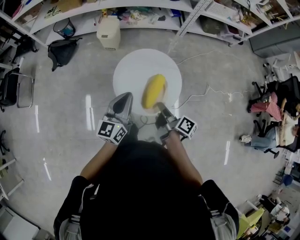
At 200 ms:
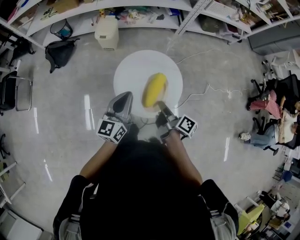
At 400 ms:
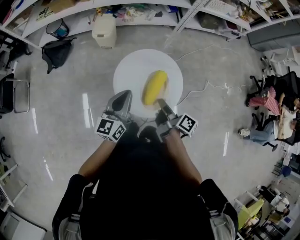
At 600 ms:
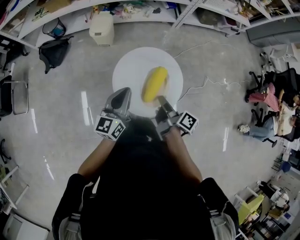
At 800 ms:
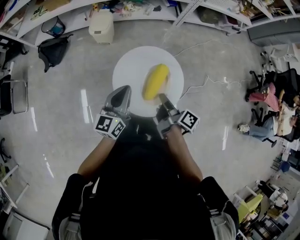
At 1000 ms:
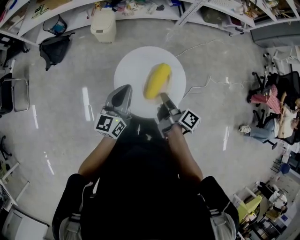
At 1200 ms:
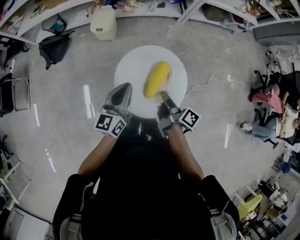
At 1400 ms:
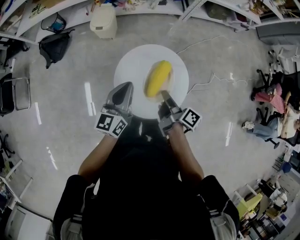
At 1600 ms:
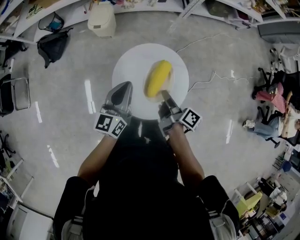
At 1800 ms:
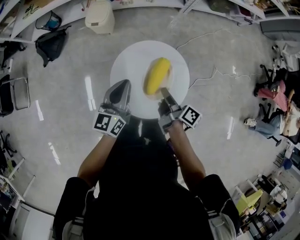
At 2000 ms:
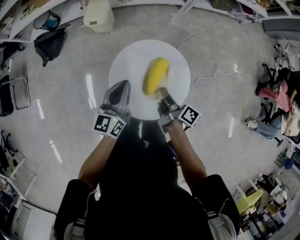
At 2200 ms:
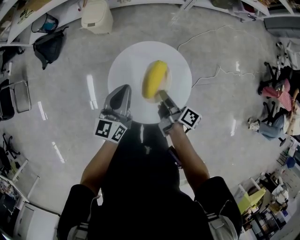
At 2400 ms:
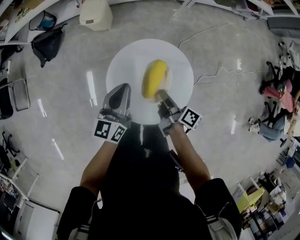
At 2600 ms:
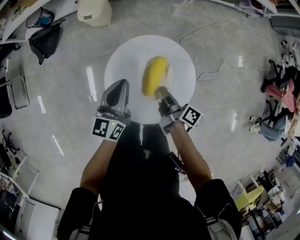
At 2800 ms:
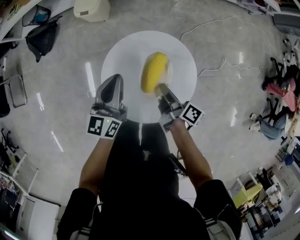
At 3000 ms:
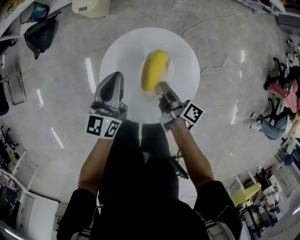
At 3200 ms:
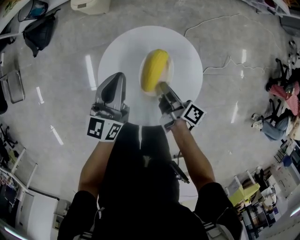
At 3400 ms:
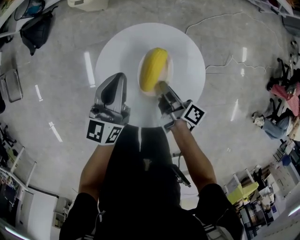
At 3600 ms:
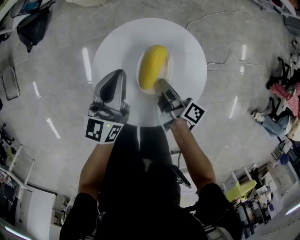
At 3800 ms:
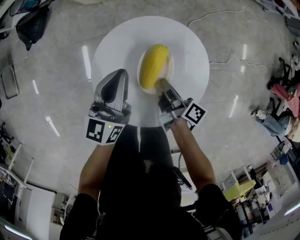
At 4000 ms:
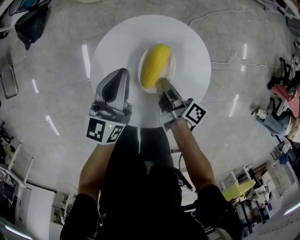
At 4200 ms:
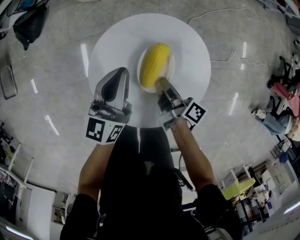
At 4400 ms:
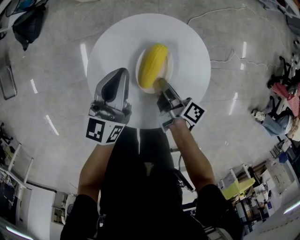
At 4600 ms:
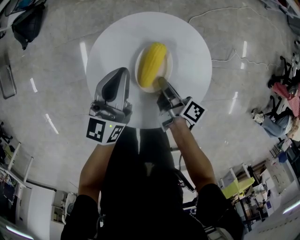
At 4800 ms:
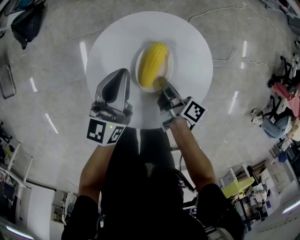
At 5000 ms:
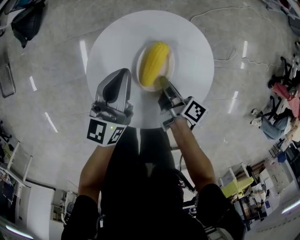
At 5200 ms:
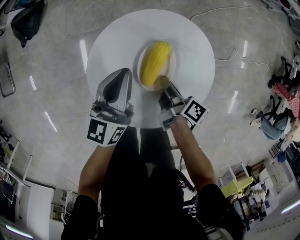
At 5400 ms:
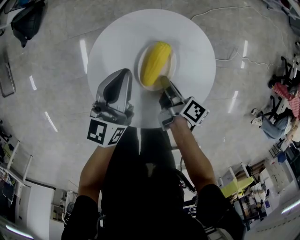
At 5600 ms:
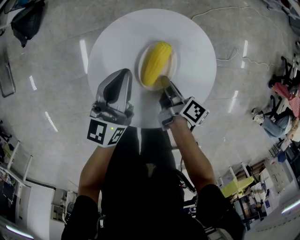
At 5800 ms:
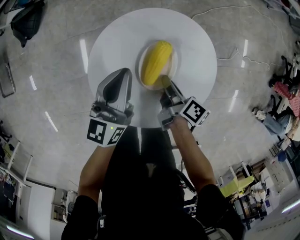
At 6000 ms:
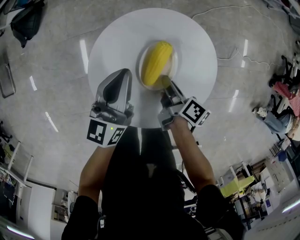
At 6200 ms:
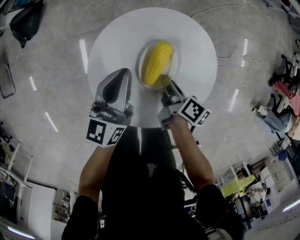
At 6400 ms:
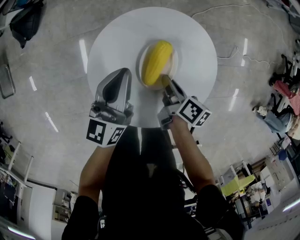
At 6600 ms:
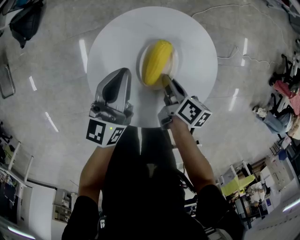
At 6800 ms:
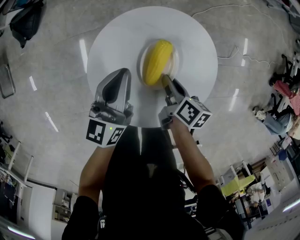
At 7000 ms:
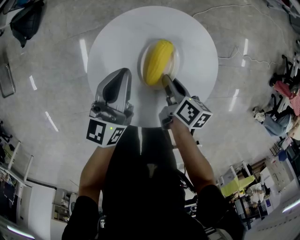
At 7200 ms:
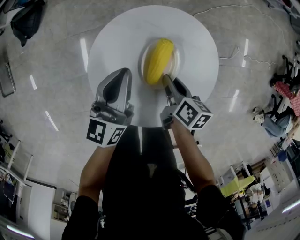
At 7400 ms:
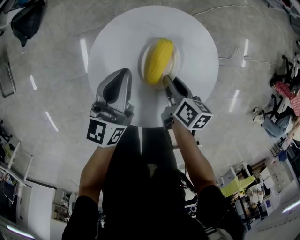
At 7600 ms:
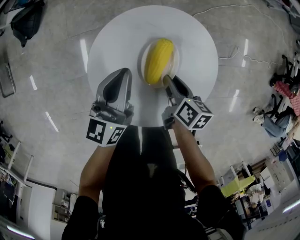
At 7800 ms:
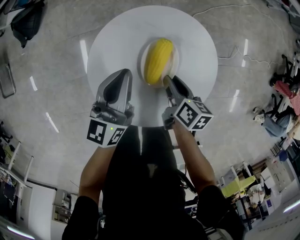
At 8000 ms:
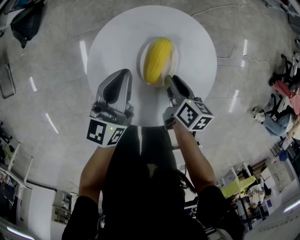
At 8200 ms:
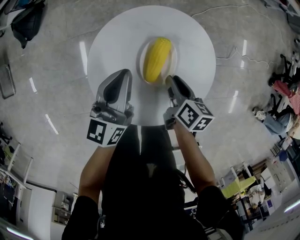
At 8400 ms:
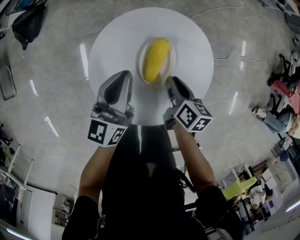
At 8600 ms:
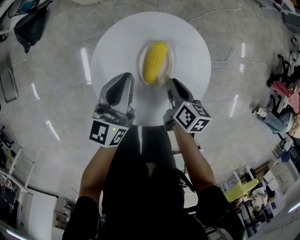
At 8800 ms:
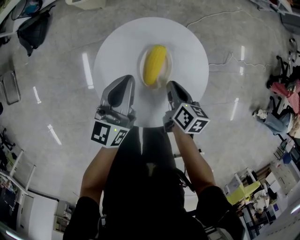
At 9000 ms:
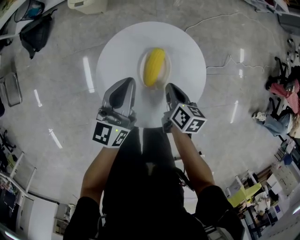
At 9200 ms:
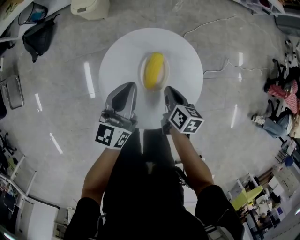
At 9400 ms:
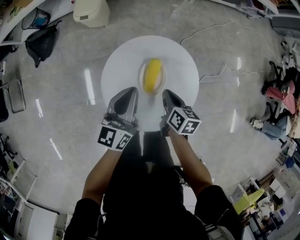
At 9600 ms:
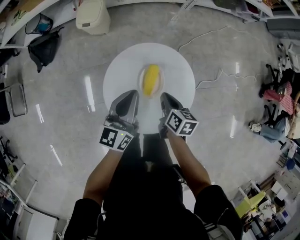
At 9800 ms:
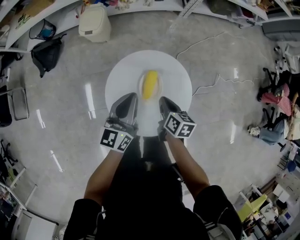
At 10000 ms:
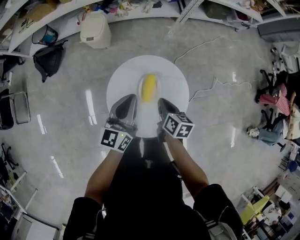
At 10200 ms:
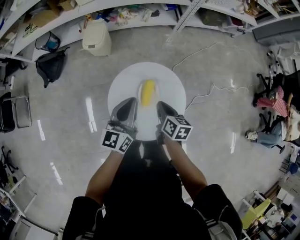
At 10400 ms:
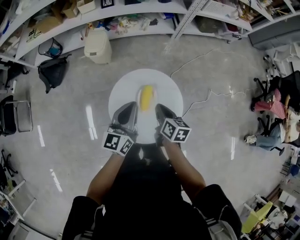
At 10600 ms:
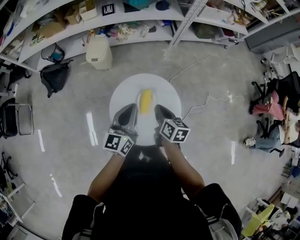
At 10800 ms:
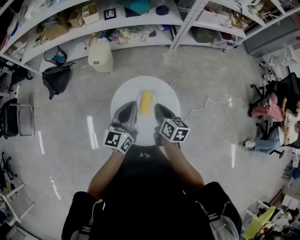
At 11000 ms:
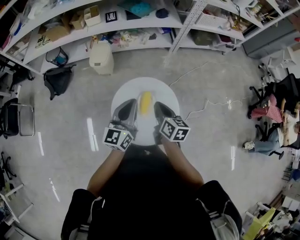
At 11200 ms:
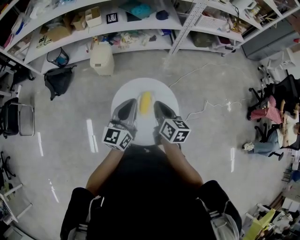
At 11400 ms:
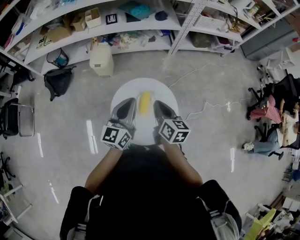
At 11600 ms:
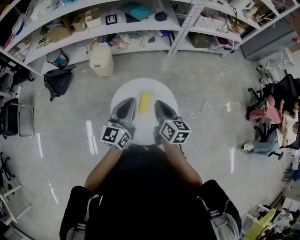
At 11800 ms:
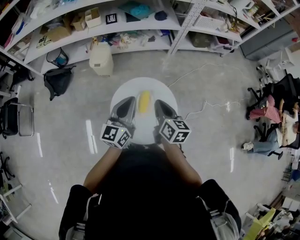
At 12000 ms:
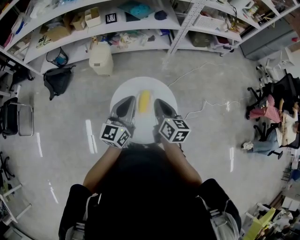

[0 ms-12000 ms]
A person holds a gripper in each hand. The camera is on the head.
0 ms to 1600 ms: The left gripper shifts by roughly 15 cm.
1600 ms to 3000 ms: The left gripper heads downward, covering about 10 cm.
3000 ms to 4400 ms: The left gripper heads downward, covering approximately 10 cm.
7600 ms to 9000 ms: The left gripper travels upward by some 5 cm.
9000 ms to 10400 ms: The left gripper shifts some 15 cm upward.
10400 ms to 12000 ms: The left gripper heads upward, covering roughly 10 cm.

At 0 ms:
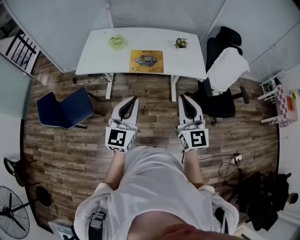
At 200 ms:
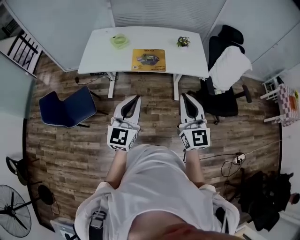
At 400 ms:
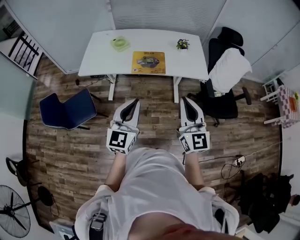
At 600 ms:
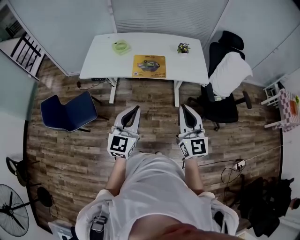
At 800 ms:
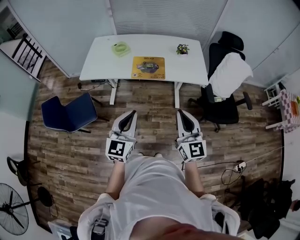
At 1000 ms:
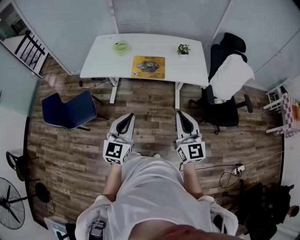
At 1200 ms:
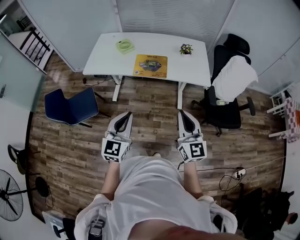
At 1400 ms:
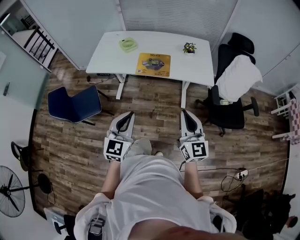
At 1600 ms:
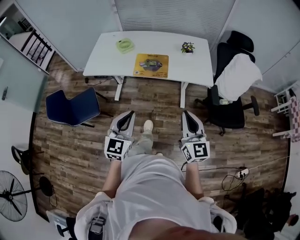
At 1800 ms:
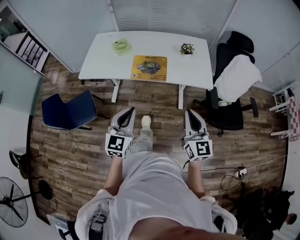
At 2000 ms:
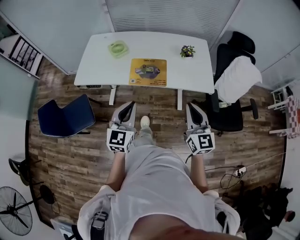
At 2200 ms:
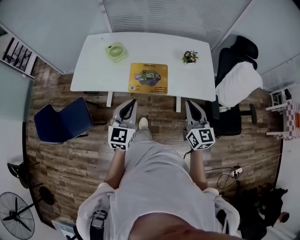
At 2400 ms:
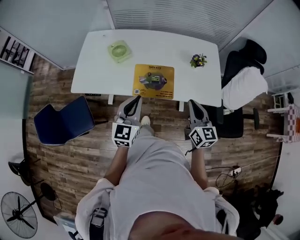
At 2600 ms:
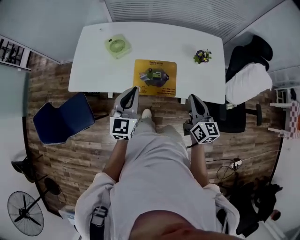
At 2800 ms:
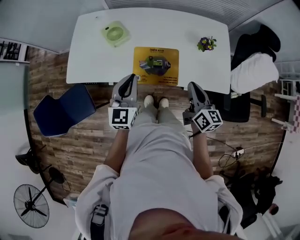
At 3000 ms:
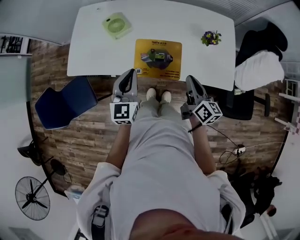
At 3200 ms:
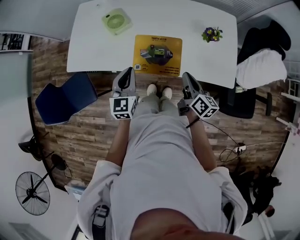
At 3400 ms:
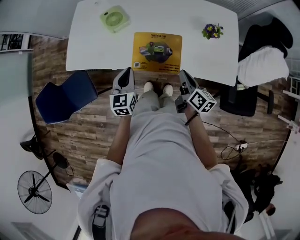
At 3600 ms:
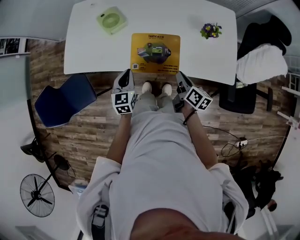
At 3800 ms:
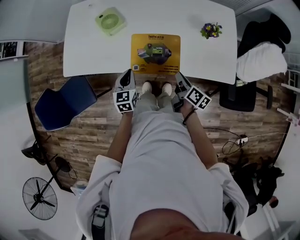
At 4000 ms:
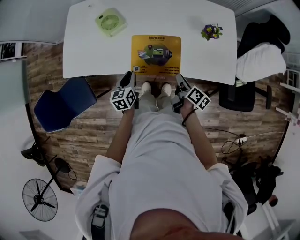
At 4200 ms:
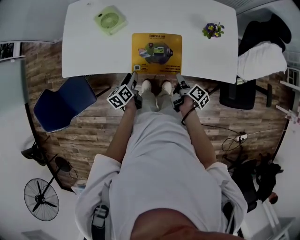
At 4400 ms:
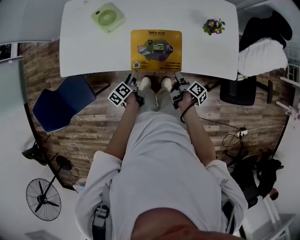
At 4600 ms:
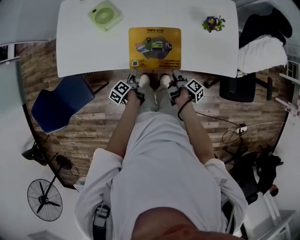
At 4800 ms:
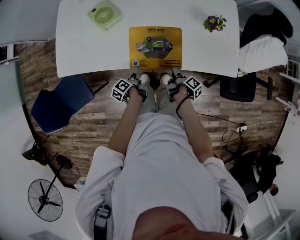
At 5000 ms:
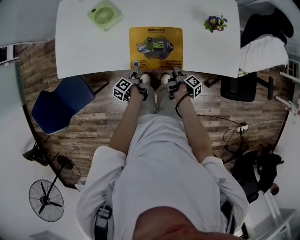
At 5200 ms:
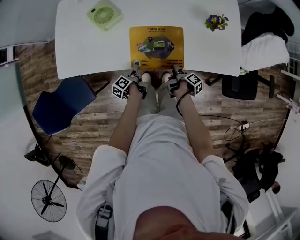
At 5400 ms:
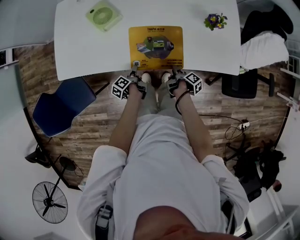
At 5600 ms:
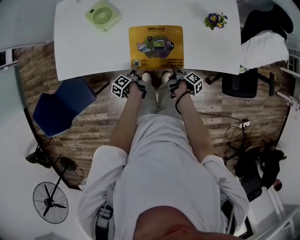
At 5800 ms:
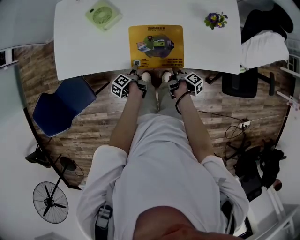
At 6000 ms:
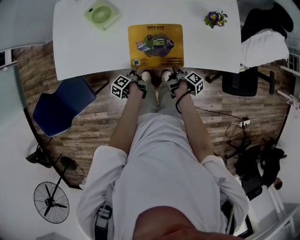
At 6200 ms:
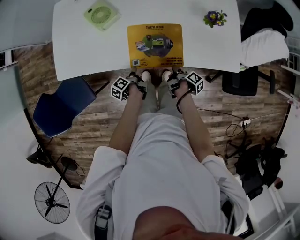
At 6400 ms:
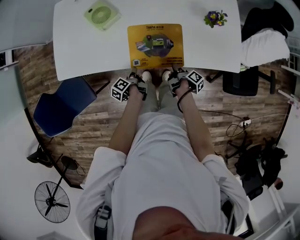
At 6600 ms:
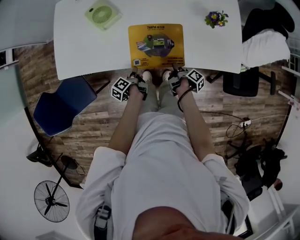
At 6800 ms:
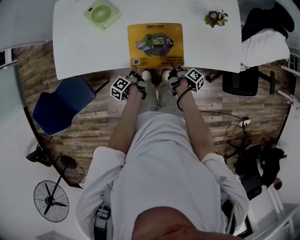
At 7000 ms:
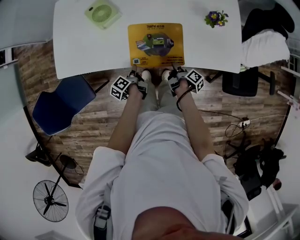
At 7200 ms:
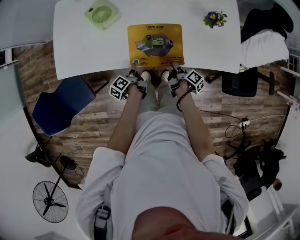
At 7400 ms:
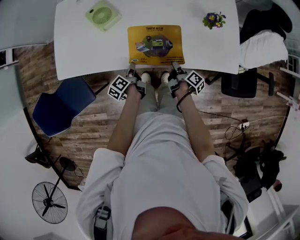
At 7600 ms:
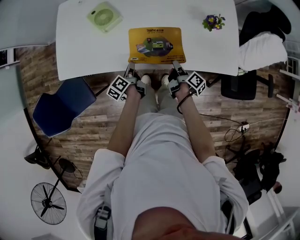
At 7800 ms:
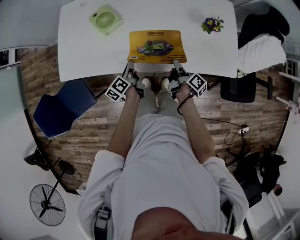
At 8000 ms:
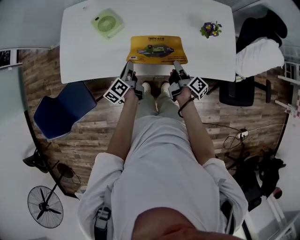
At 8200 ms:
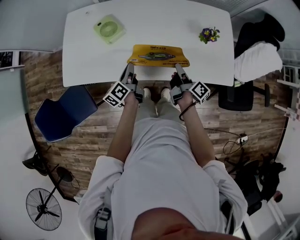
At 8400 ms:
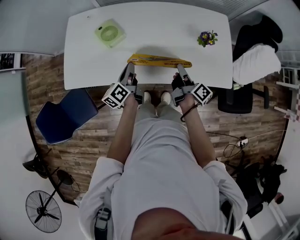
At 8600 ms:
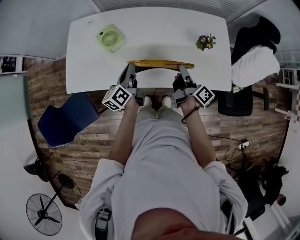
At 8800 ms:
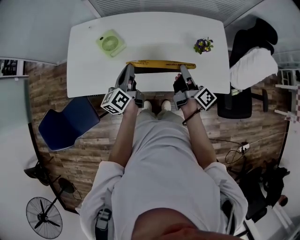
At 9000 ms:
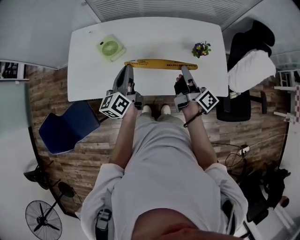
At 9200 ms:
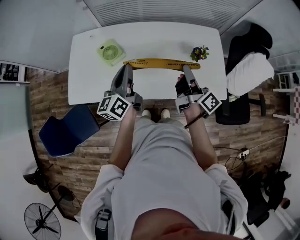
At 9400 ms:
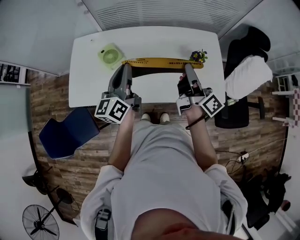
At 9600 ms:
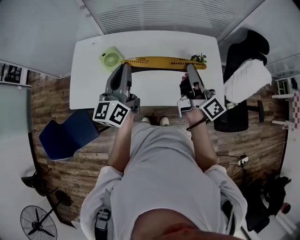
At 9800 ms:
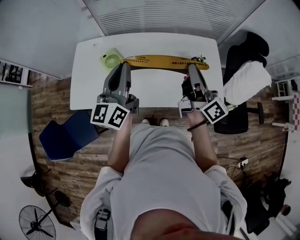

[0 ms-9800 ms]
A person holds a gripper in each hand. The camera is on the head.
0 ms to 1400 ms: The left gripper travels downward by about 5 cm; the right gripper travels to the right and downward by some 10 cm.
1400 ms to 2800 ms: Both grippers are carried forward, roughly 40 cm. The right gripper changes its angle by some 30 degrees.
2800 ms to 4200 ms: The grippers both shift downward by roughly 25 cm. The right gripper rotates around the line of its fingers by some 50 degrees, clockwise from behind, and opens; the left gripper rolls counterclockwise, seen from behind, by about 50 degrees, and opens.
4200 ms to 5600 ms: The grippers both shift downward by some 10 cm. The left gripper rotates around the line of its fingers by about 40 degrees, counterclockwise from behind. Meanwhile the right gripper rotates about 30 degrees.
5600 ms to 7000 ms: The left gripper closes up.
7000 ms to 8400 ms: The left gripper travels upward and forward by roughly 20 cm, and swivels some 40 degrees, while the right gripper is displaced upward by about 20 cm, and changes its angle by about 30 degrees.
8400 ms to 9800 ms: The two grippers go approximately 30 cm upward. The left gripper changes its angle by roughly 40 degrees; the right gripper rotates roughly 40 degrees.

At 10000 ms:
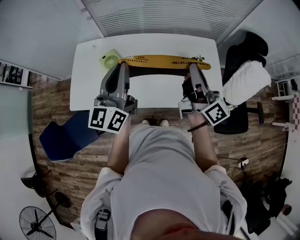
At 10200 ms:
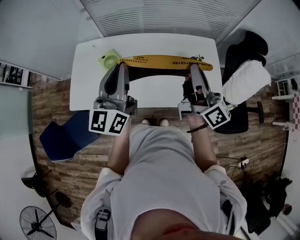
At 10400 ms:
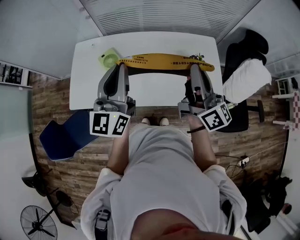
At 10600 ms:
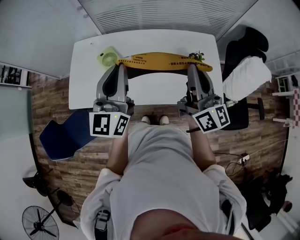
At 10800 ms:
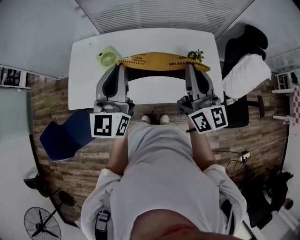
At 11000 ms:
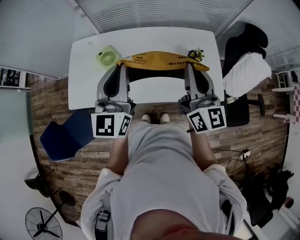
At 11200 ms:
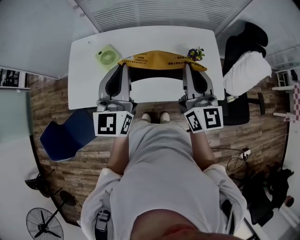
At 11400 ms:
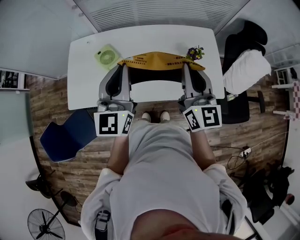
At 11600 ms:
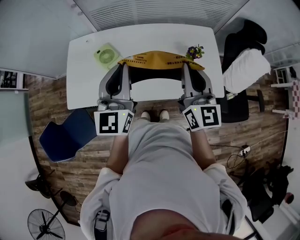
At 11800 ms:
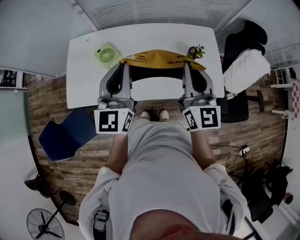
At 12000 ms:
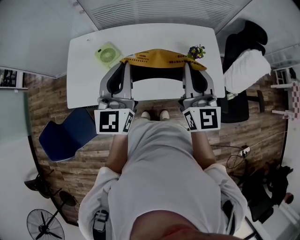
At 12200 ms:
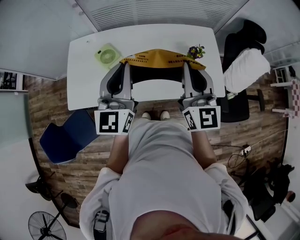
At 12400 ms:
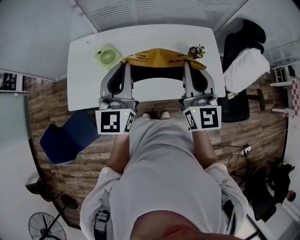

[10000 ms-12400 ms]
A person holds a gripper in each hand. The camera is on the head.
10000 ms to 11200 ms: The right gripper rotates around the line of its fingers by roughly 40 degrees, counterclockwise from behind.
11200 ms to 12400 ms: The grippers move only a little.
